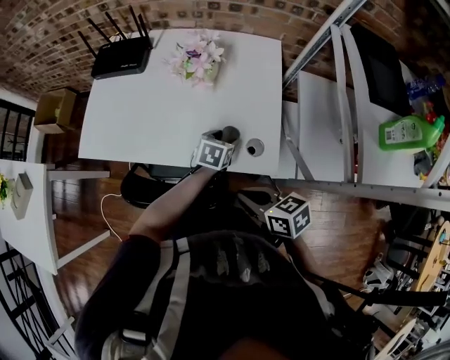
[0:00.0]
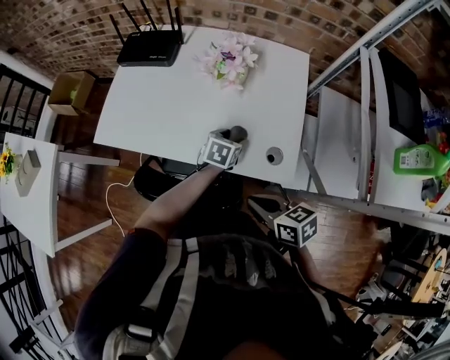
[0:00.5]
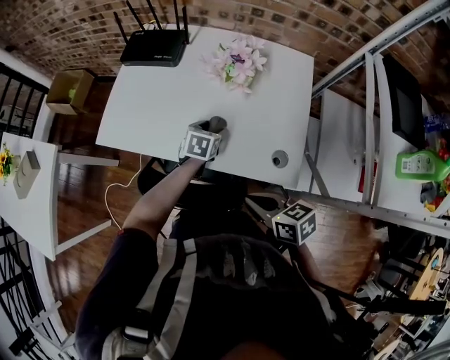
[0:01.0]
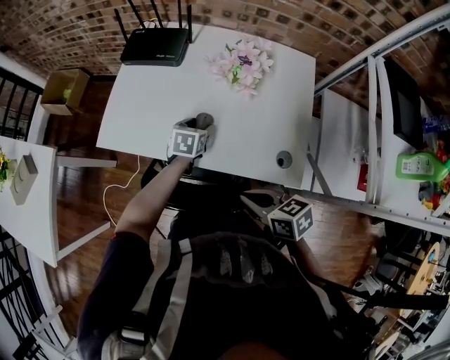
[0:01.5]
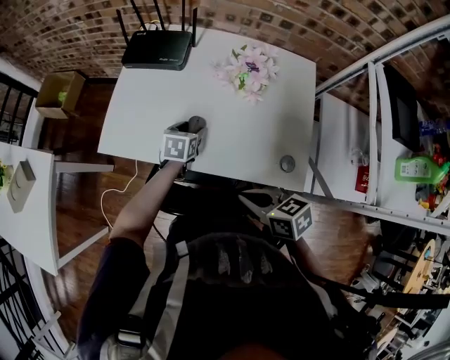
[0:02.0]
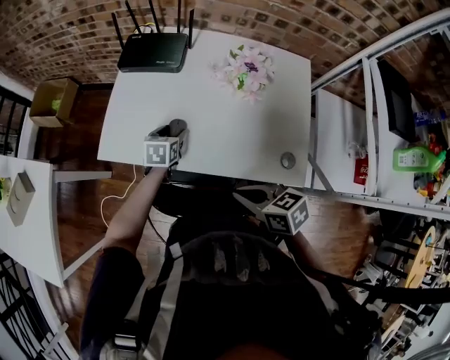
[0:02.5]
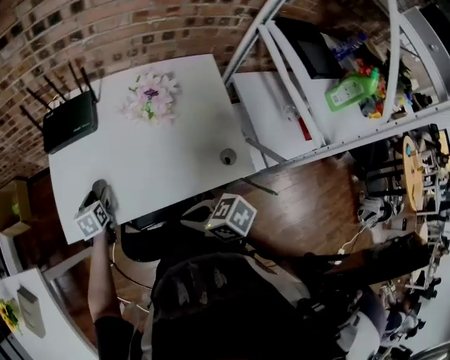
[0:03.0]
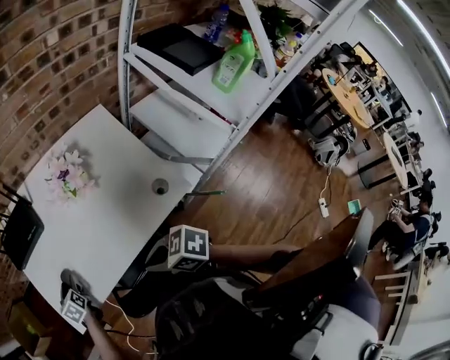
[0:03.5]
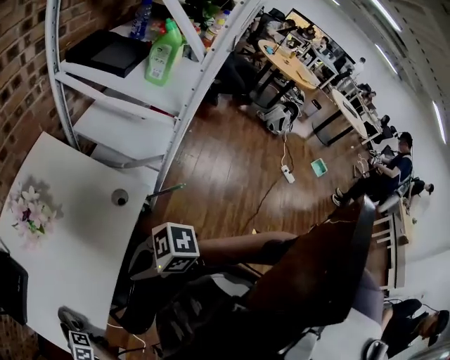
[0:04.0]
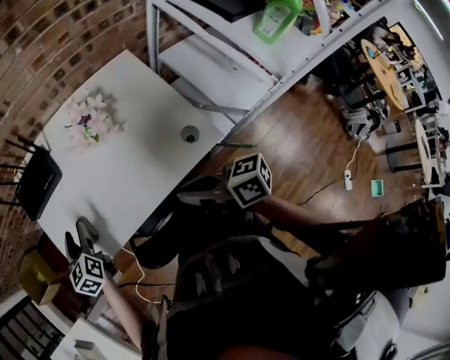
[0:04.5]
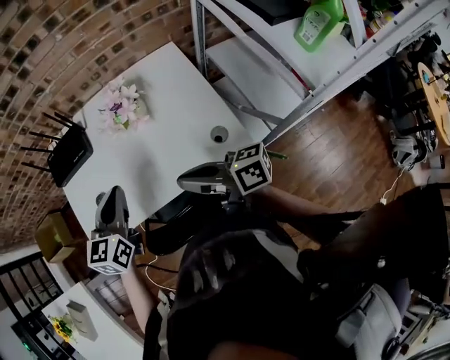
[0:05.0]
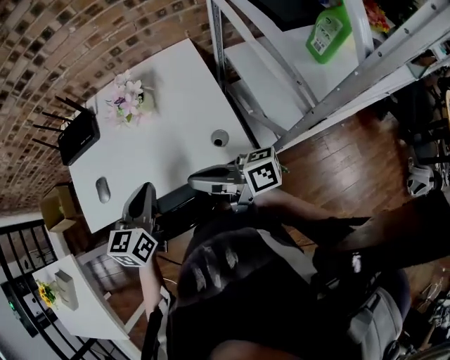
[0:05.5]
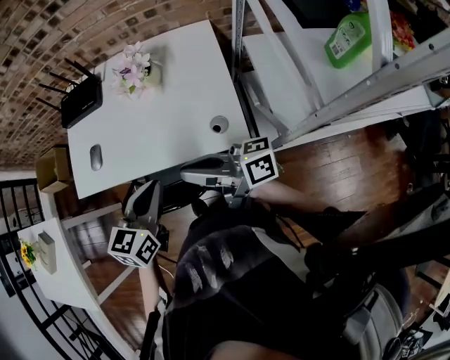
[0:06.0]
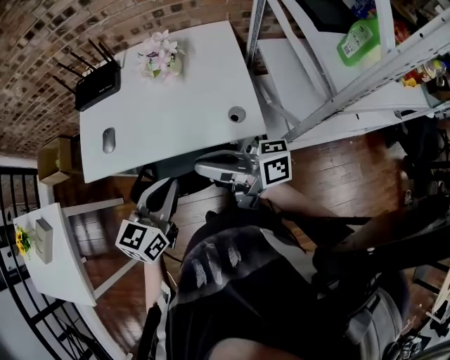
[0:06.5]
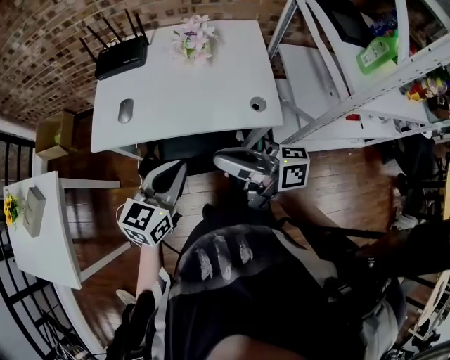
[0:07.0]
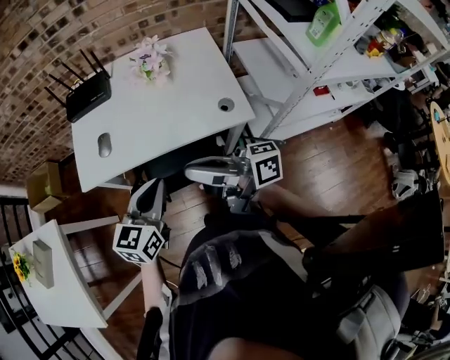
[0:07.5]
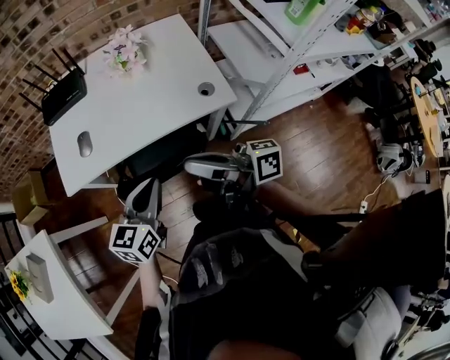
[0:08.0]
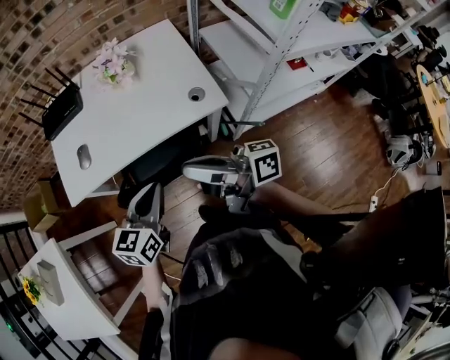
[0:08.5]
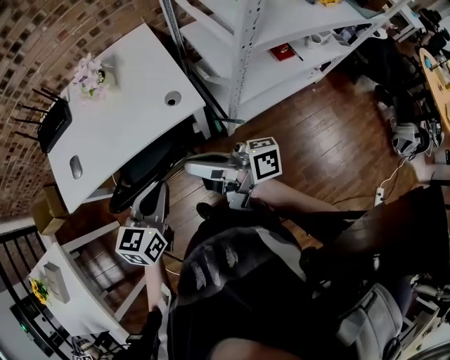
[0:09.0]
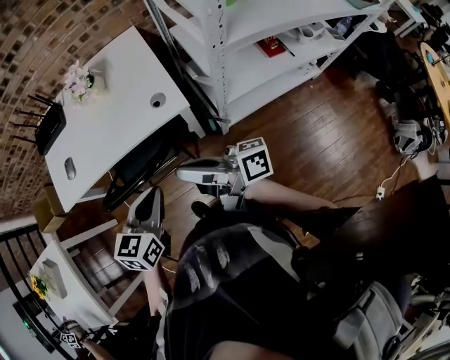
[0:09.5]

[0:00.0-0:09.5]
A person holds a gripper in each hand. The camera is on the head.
0:00.0 to 0:02.0: The right gripper goes approximately 15 cm to the left and forward. The left gripper is displaced to the left and forward by about 25 cm.
0:02.0 to 0:04.0: The left gripper moves to the left and forward, some 20 cm; the right gripper heads upward, covering about 5 cm.
0:04.0 to 0:05.5: The left gripper is displaced to the right, upward and backward by roughly 40 cm, changes its angle by approximately 30 degrees, and closes up. The right gripper goes approximately 15 cm to the right, and angles its fingers upward, by approximately 40 degrees.
0:05.5 to 0:07.5: The right gripper heads to the left, backward and upward, covering roughly 15 cm, while the left gripper is displaced backward and to the left by approximately 15 cm.
0:07.5 to 0:09.5: Both grippers move to the right and backward, roughly 20 cm.

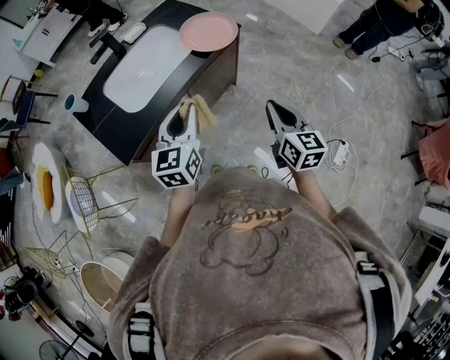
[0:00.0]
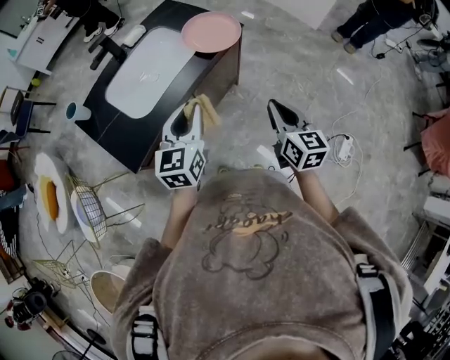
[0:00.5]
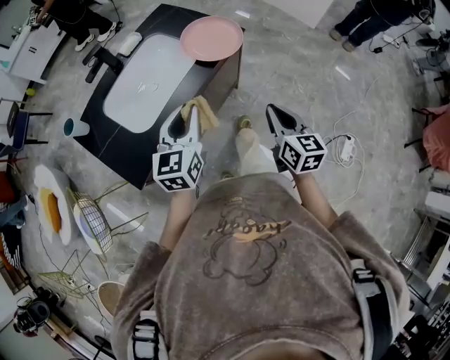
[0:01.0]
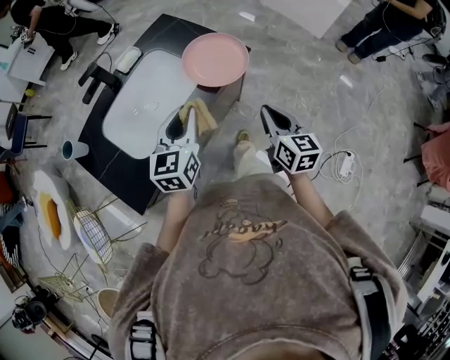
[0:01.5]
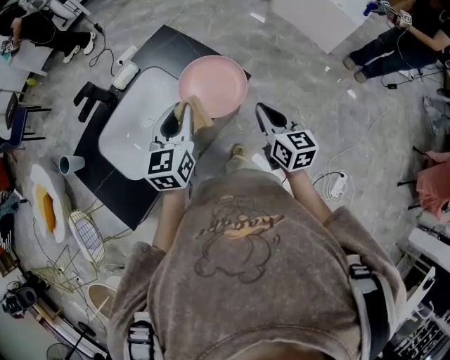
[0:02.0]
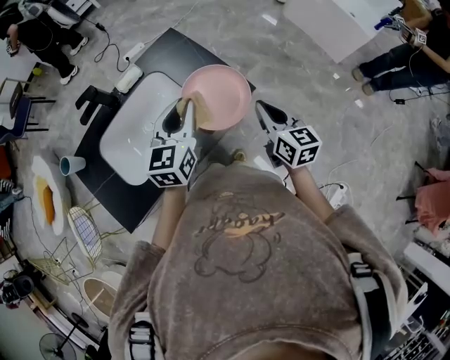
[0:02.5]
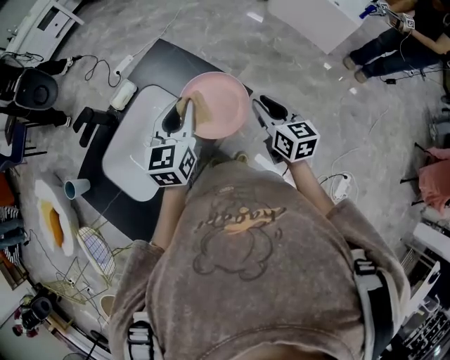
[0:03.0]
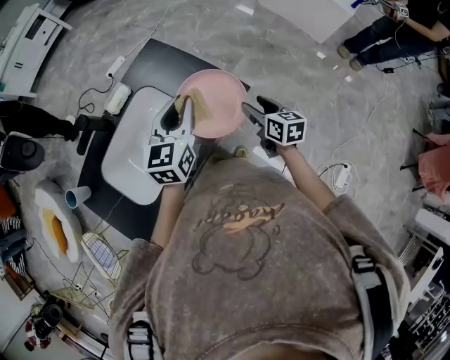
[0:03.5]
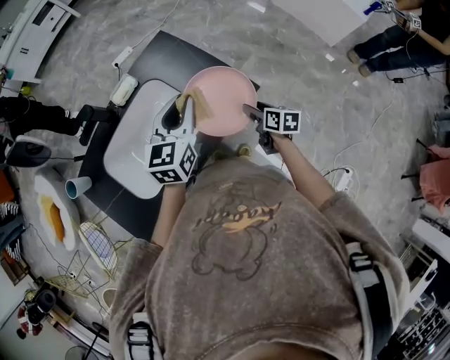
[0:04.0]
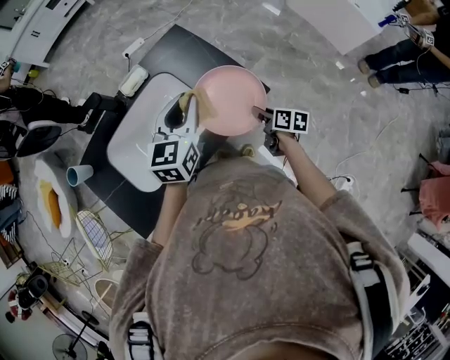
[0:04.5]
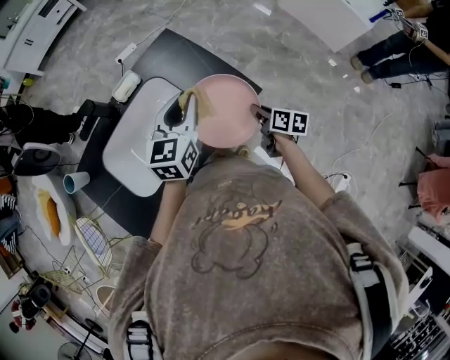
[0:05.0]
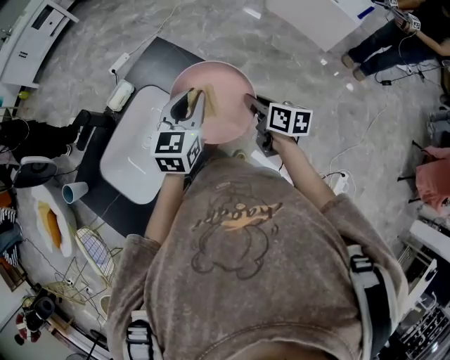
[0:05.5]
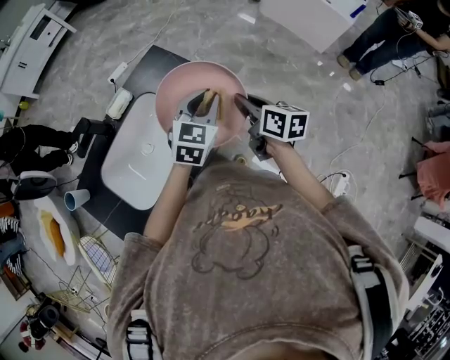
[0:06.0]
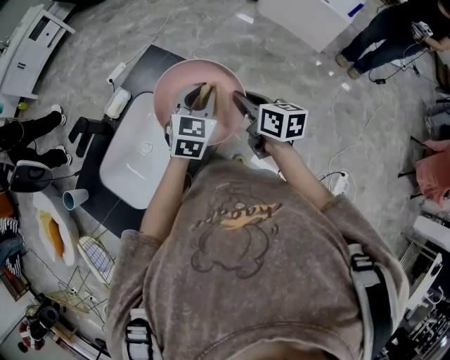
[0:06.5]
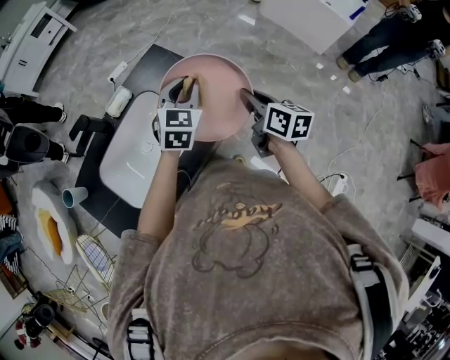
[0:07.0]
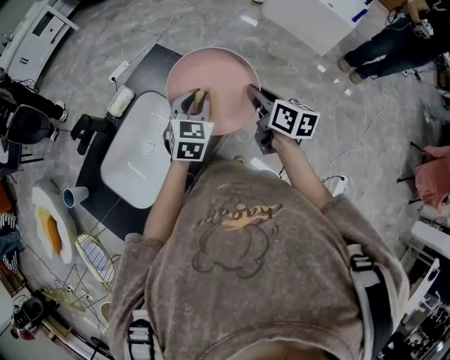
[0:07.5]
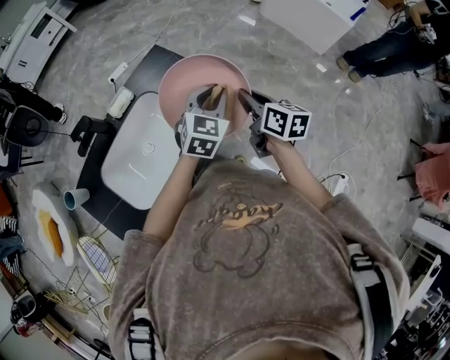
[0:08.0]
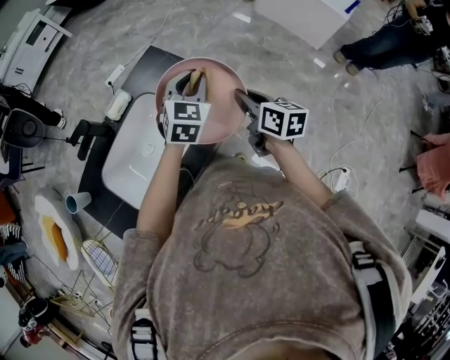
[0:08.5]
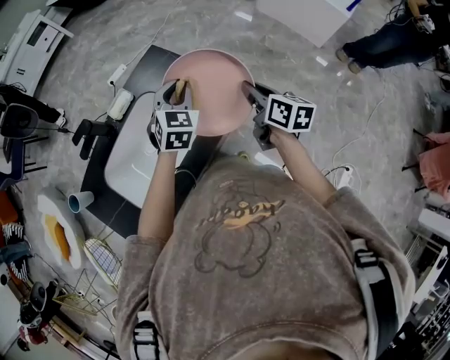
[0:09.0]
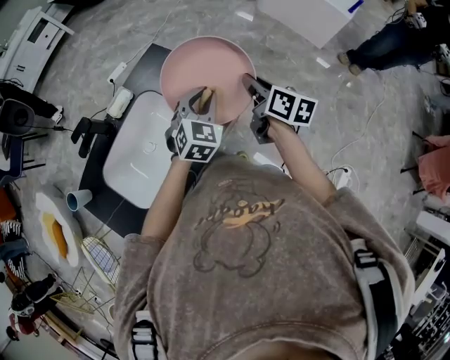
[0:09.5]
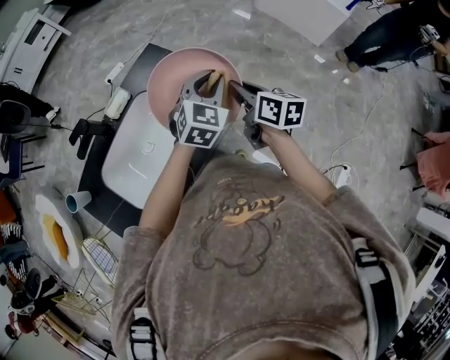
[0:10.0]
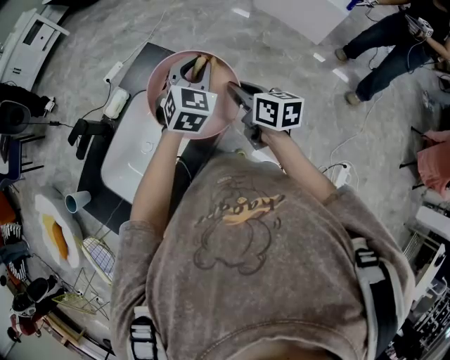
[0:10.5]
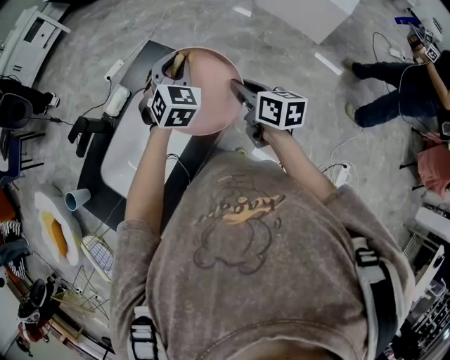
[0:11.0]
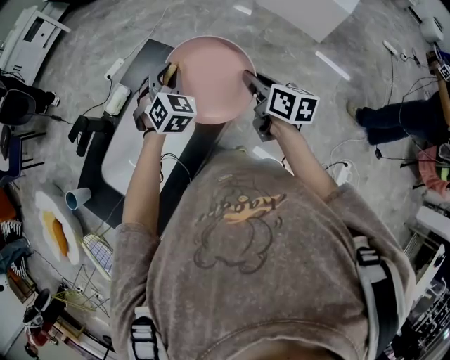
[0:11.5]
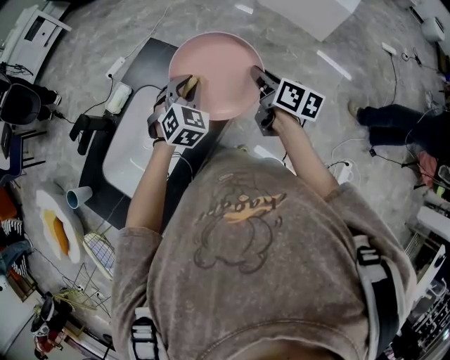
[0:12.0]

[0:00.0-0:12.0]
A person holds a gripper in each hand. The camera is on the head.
0:00.0 to 0:02.0: Both grippers travel together forward, roughly 35 cm.
0:02.0 to 0:04.0: The left gripper heads forward, covering about 10 cm. Meanwhile the right gripper travels downward and forward by about 20 cm, rotates approximately 30 degrees, and opens.
0:04.0 to 0:06.0: The right gripper travels upward by approximately 15 cm, and closes its fingers. Meanwhile the left gripper moves to the right, approximately 10 cm, and swivels about 20 degrees.
0:06.0 to 0:08.0: The grippers make only small movements.
0:08.0 to 0:10.0: The left gripper reaches about 10 cm to the left, then returns.
0:10.0 to 0:12.0: The left gripper shifts roughly 5 cm to the left, while the right gripper moves to the right, some 5 cm.

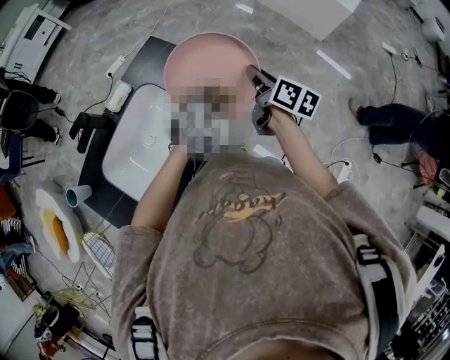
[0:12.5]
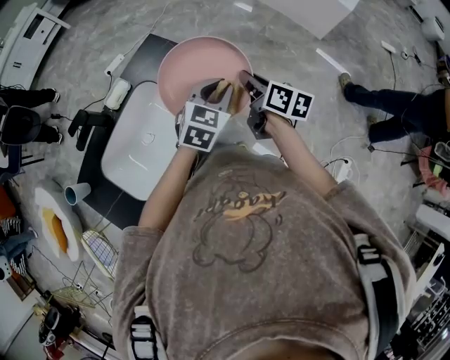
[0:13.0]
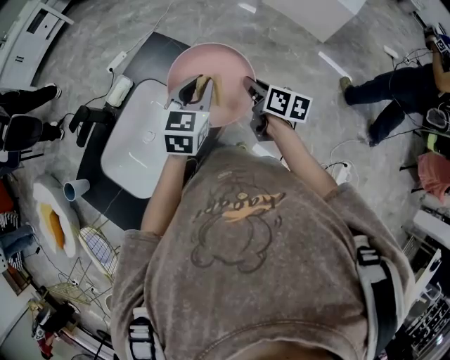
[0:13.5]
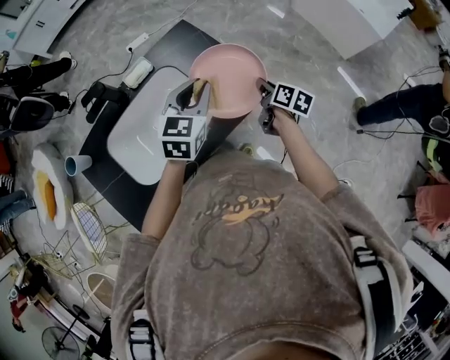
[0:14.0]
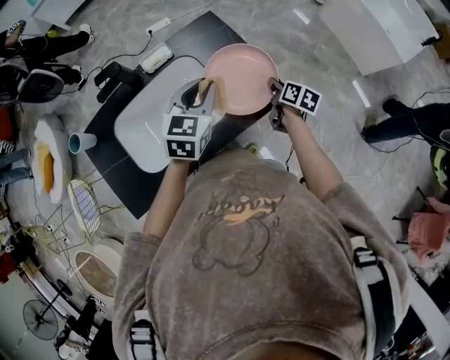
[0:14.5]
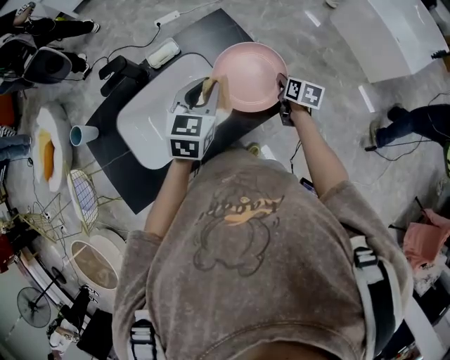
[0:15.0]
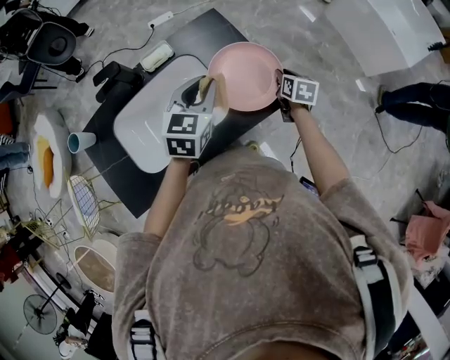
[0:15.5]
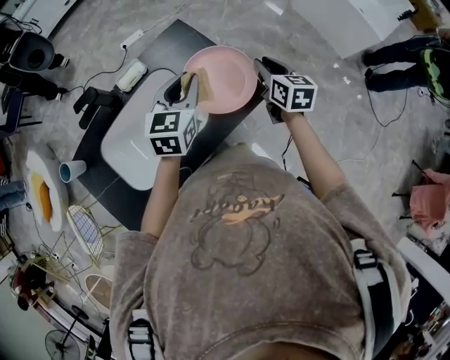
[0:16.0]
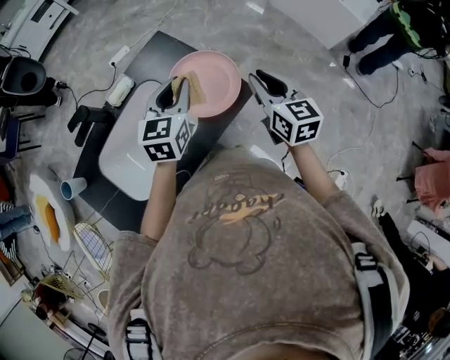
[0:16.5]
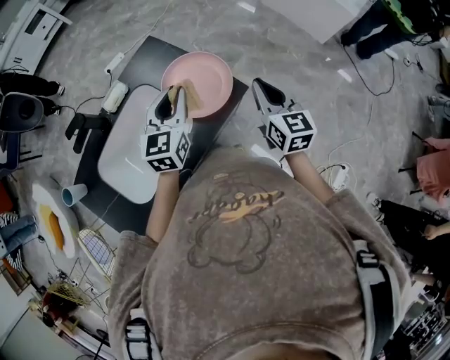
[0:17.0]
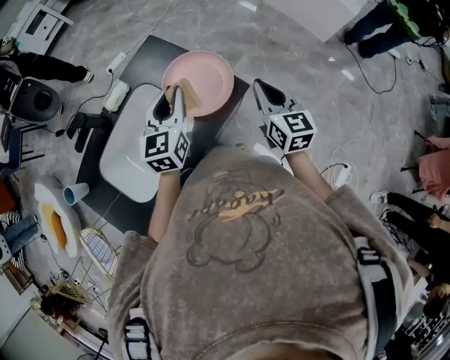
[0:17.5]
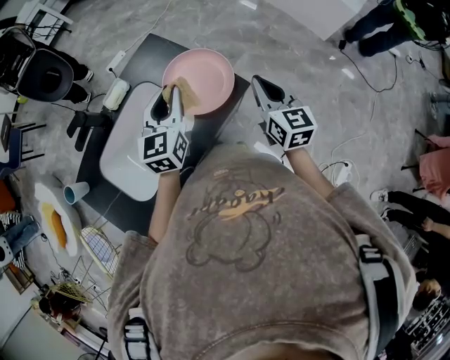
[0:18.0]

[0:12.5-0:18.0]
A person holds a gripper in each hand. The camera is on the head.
0:12.5 to 0:14.5: The right gripper travels downward by approximately 15 cm, and changes its angle by some 20 degrees; the left gripper heads to the left, covering about 15 cm, and changes its angle by approximately 40 degrees.
0:14.5 to 0:16.0: The left gripper moves roughly 5 cm. Meanwhile the right gripper moves upward, approximately 10 cm, and turns by some 30 degrees.
0:16.0 to 0:18.0: The right gripper travels backward and upward by about 10 cm, and closes.
